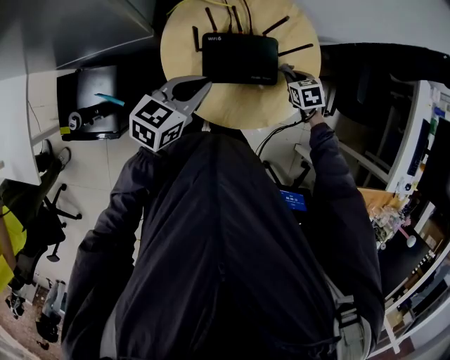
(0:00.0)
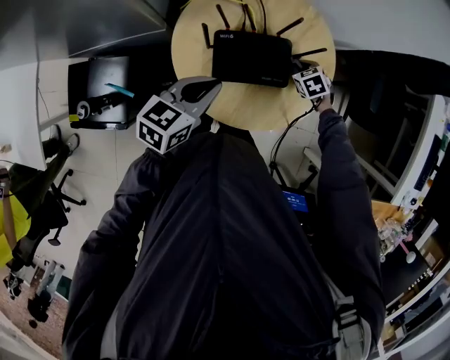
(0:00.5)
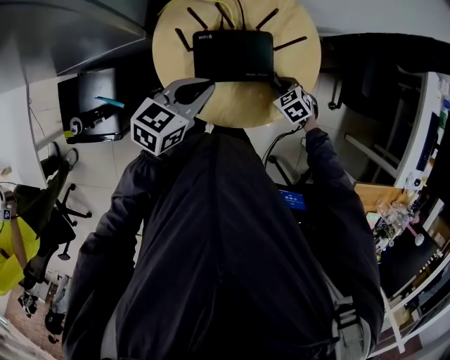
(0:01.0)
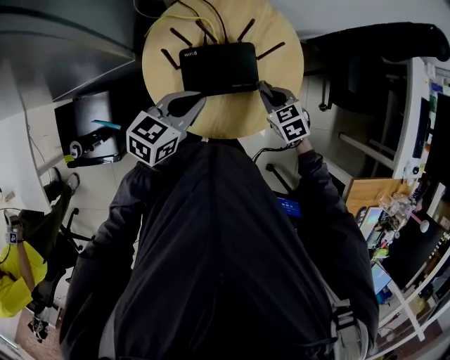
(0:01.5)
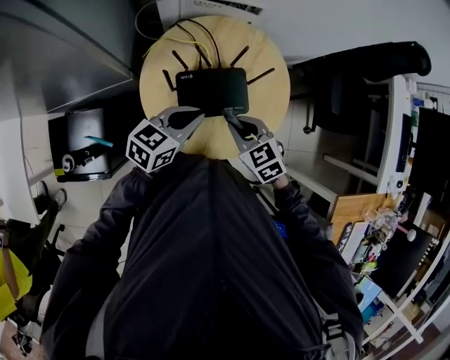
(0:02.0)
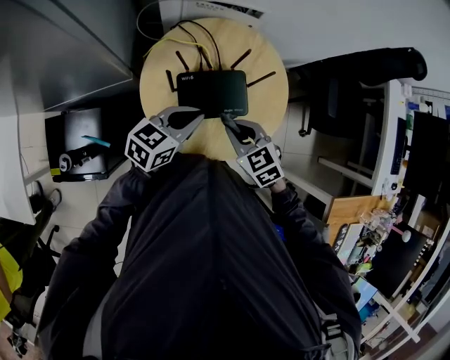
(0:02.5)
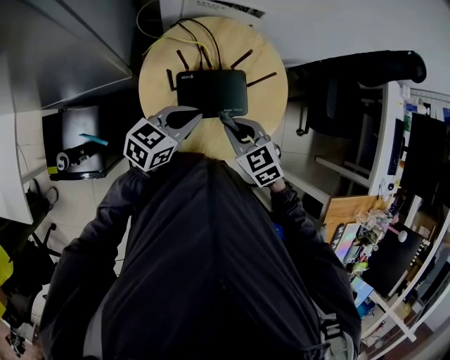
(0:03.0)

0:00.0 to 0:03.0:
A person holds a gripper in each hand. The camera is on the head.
0:00.0 to 0:01.5: The right gripper heads backward and upward, covering about 10 cm.
0:01.5 to 0:03.0: The right gripper goes some 15 cm to the left and upward.

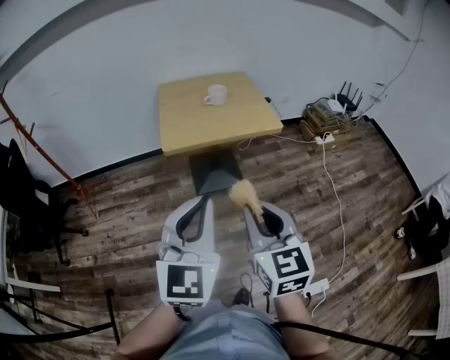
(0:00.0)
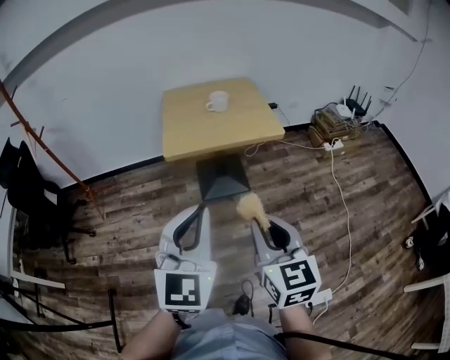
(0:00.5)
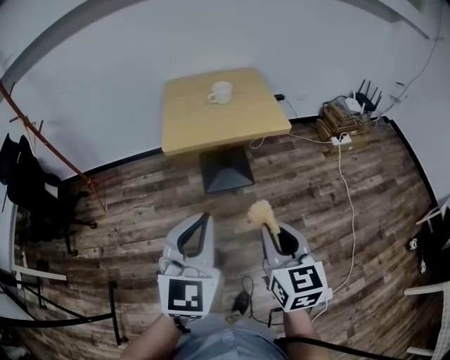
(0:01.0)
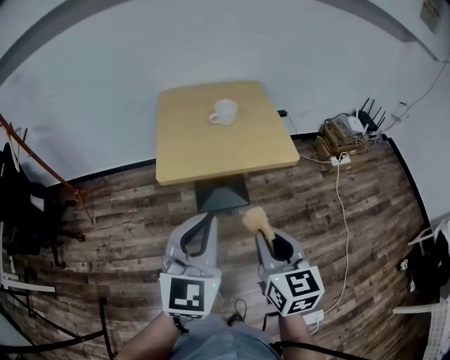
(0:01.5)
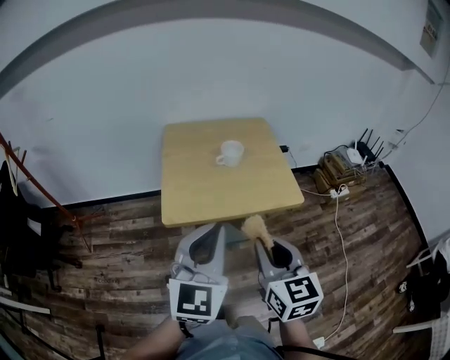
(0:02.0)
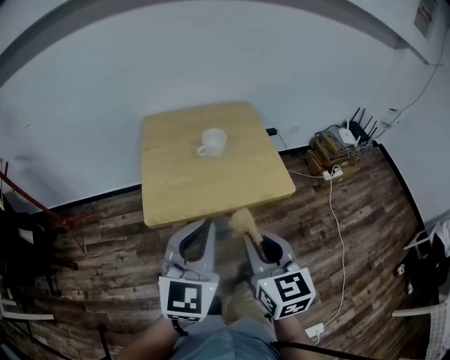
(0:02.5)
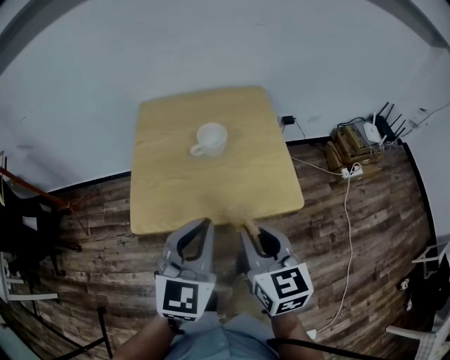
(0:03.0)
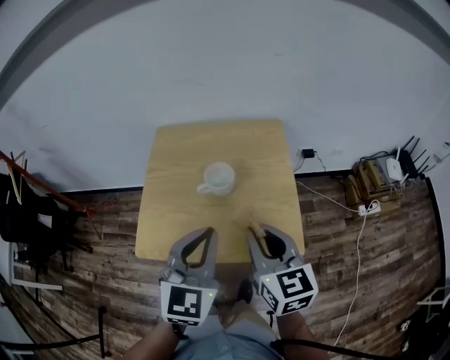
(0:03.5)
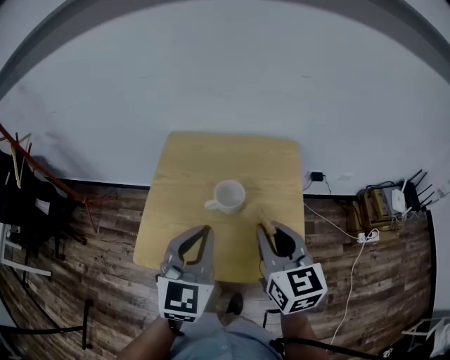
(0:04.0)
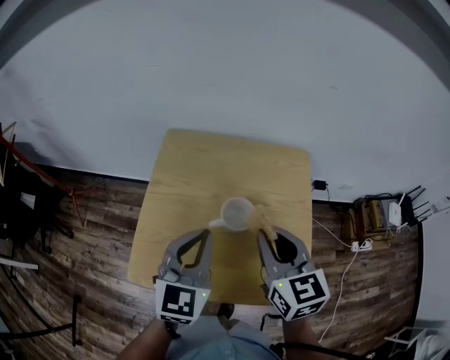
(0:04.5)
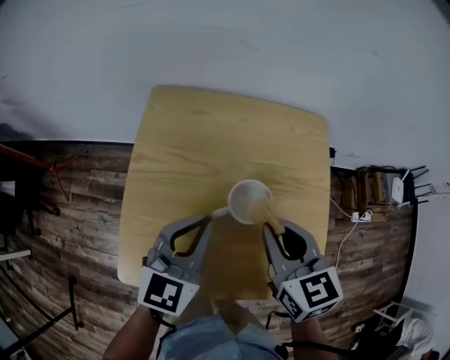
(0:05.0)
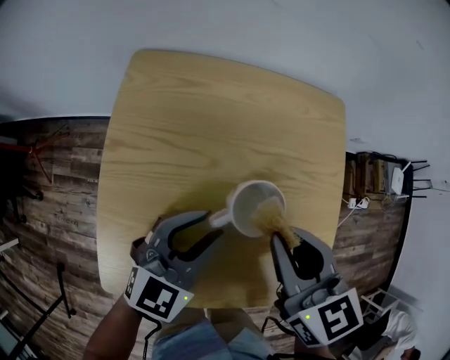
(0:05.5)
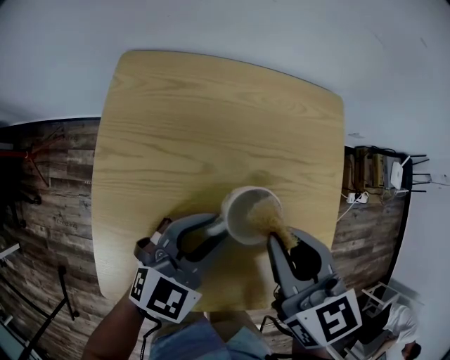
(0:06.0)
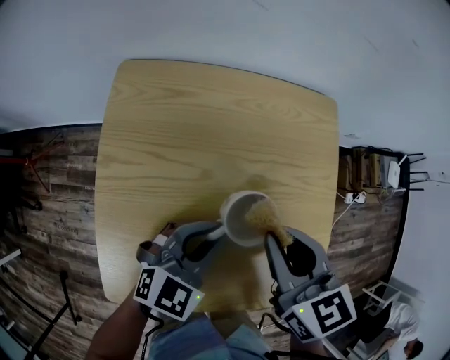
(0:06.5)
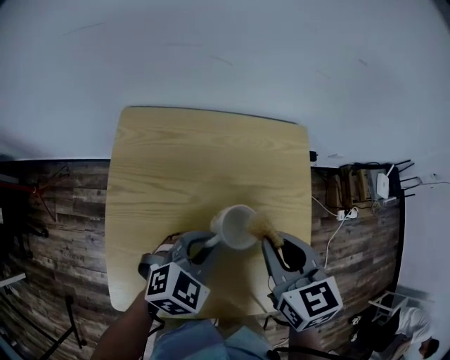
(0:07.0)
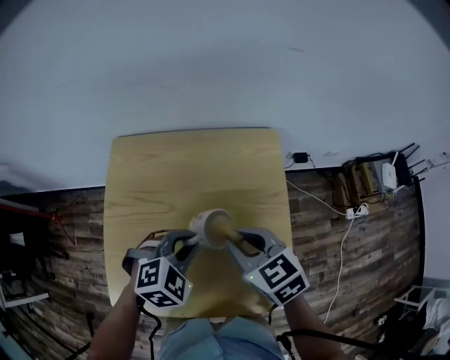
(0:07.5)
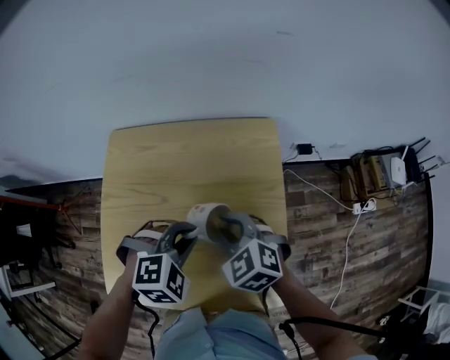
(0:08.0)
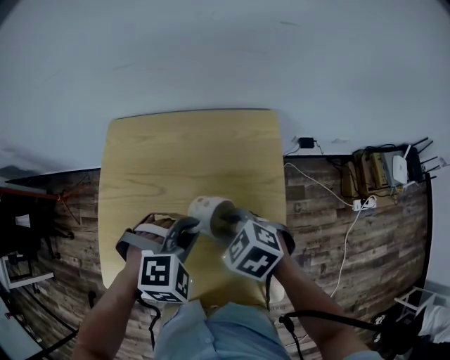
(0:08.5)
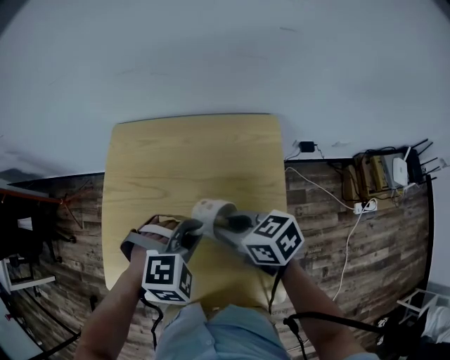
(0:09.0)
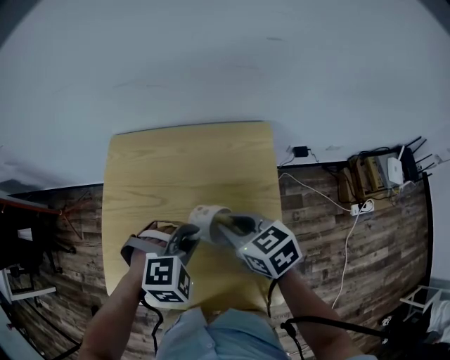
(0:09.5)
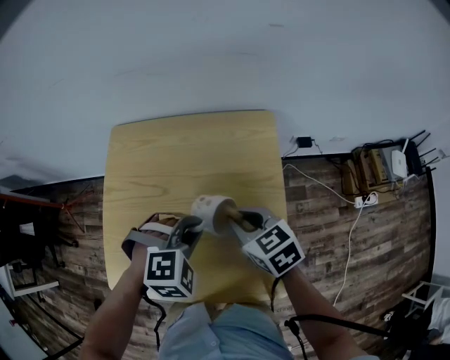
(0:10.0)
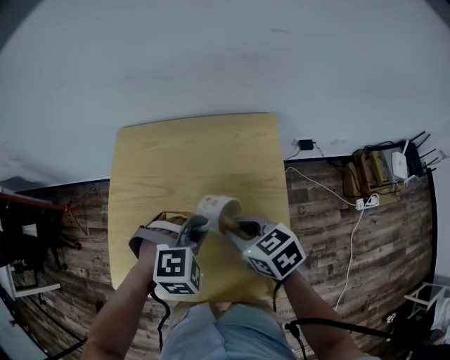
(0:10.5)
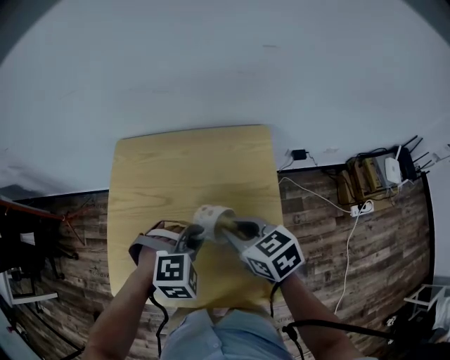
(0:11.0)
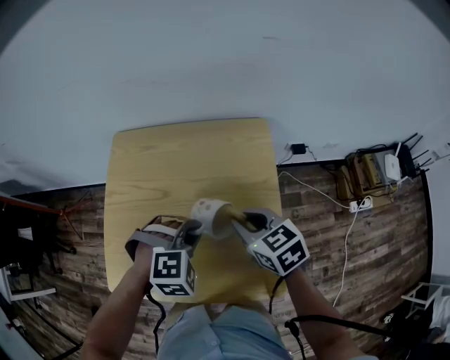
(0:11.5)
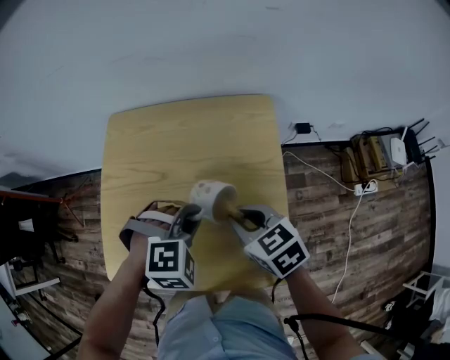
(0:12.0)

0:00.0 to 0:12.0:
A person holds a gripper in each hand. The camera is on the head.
0:00.0 to 0:02.0: Both grippers move forward, about 25 cm.
0:02.0 to 0:04.0: The two grippers go some 30 cm forward. The left gripper swivels some 20 degrees.
0:04.0 to 0:06.0: The right gripper goes roughly 20 cm forward, downward and to the left, and turns by approximately 20 degrees; the left gripper goes roughly 25 cm downward and forward, turns by some 30 degrees, and opens.
0:06.0 to 0:08.0: The left gripper shifts approximately 10 cm to the right, points its fingers some 30 degrees further downward, and closes its fingers. The right gripper moves approximately 5 cm, and changes its angle by about 40 degrees.
0:08.0 to 0:10.0: The right gripper swivels roughly 30 degrees.
0:10.0 to 0:12.0: The grippers move only a little.

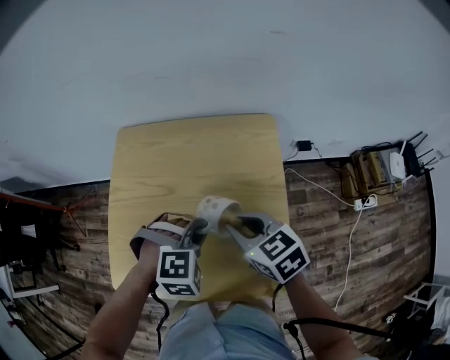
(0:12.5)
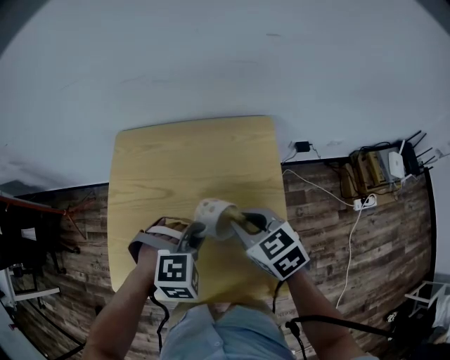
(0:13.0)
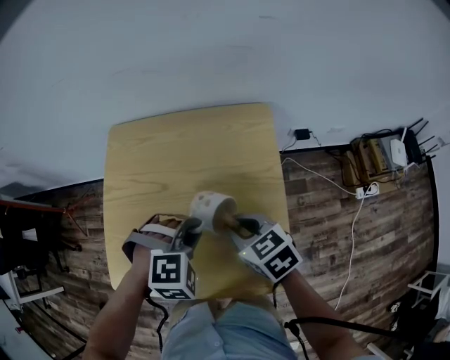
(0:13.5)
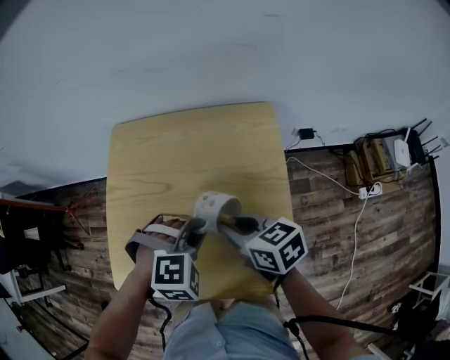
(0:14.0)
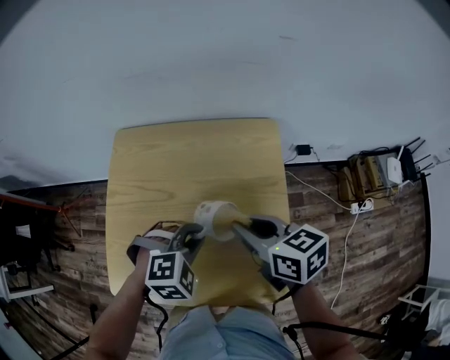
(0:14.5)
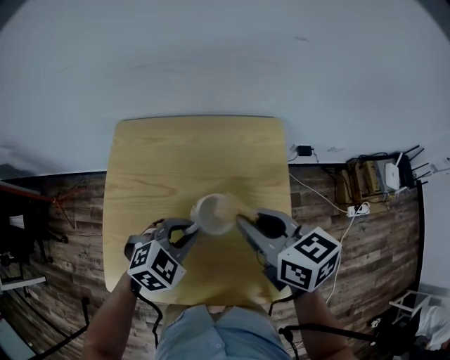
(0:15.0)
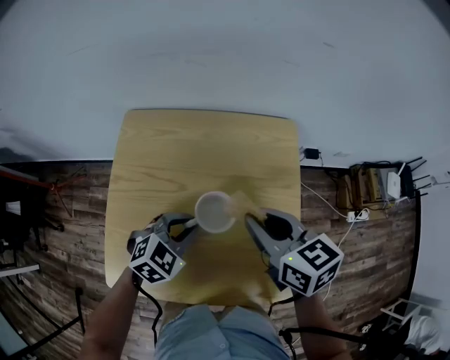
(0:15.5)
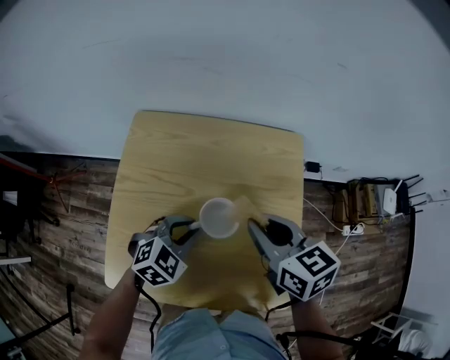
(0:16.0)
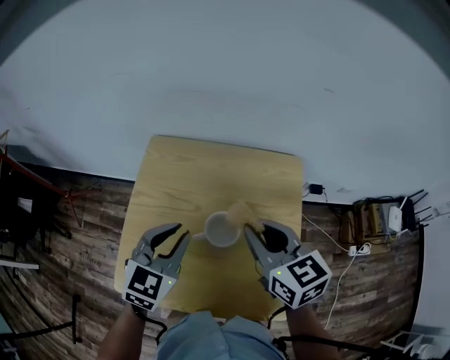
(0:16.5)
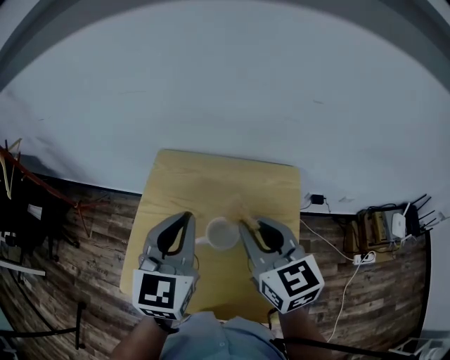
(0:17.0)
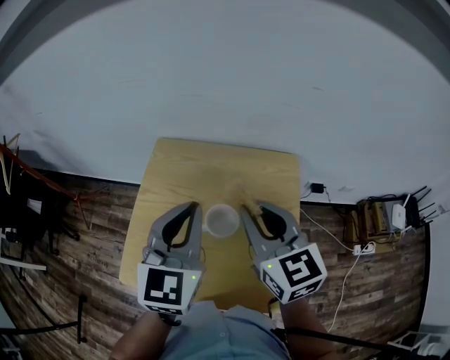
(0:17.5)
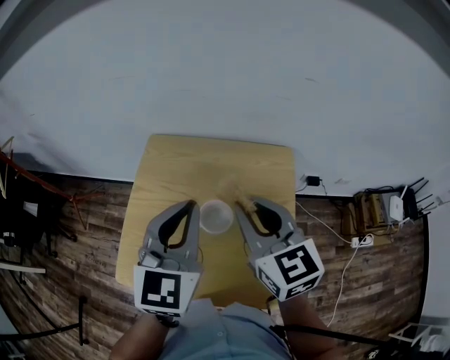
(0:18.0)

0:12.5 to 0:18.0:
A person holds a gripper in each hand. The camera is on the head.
0:12.5 to 0:14.5: The right gripper swivels some 20 degrees.
0:14.5 to 0:16.0: The left gripper travels to the left by some 5 cm, and swivels roughly 30 degrees.
0:16.0 to 0:18.0: The right gripper shifts approximately 10 cm upward, and changes its angle by roughly 20 degrees. Meanwhile the left gripper is displaced upward by some 25 cm, and angles its fingers upward, by some 30 degrees.

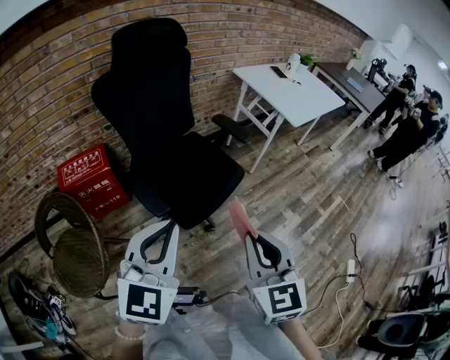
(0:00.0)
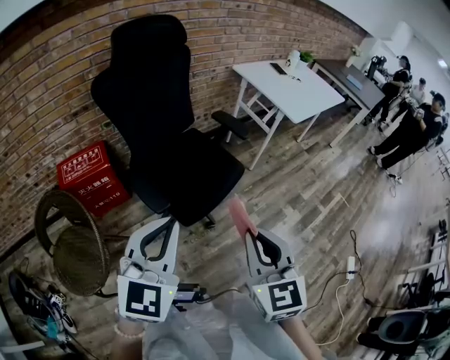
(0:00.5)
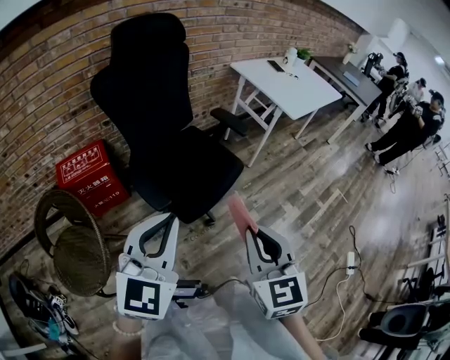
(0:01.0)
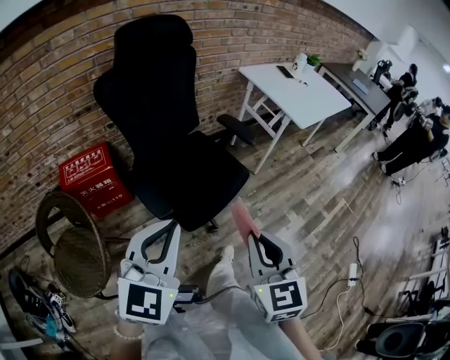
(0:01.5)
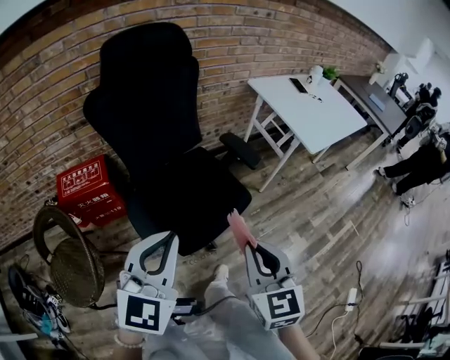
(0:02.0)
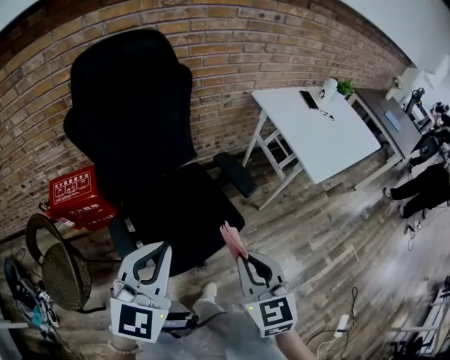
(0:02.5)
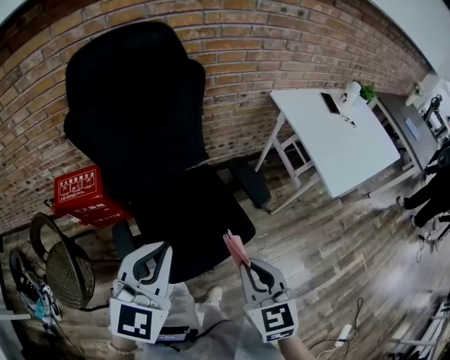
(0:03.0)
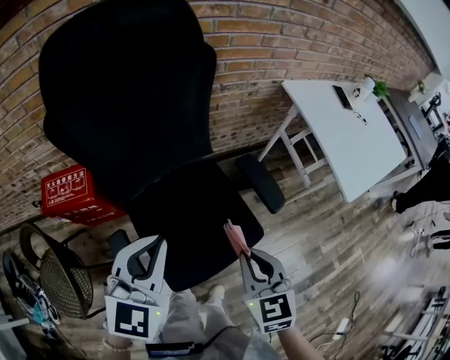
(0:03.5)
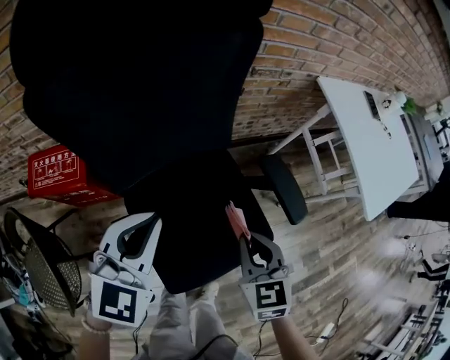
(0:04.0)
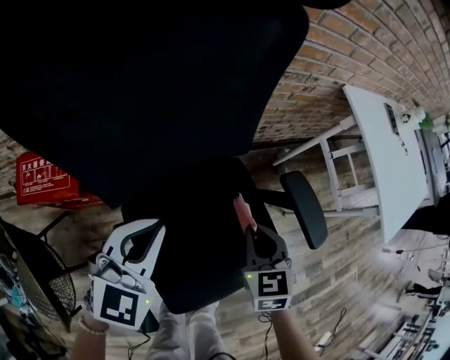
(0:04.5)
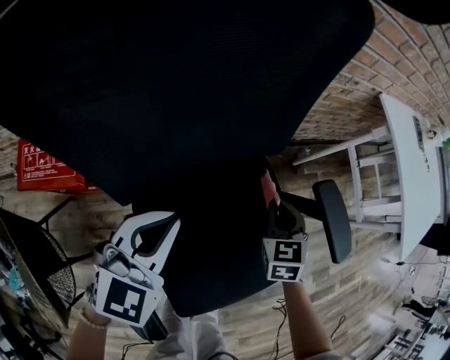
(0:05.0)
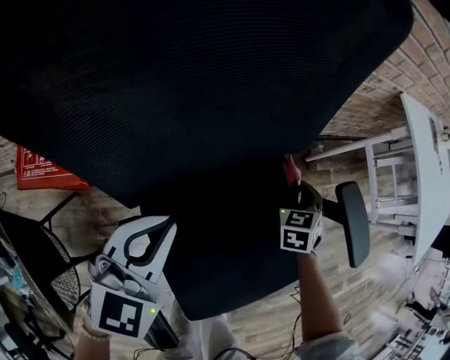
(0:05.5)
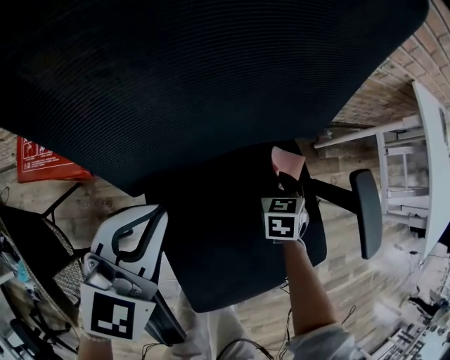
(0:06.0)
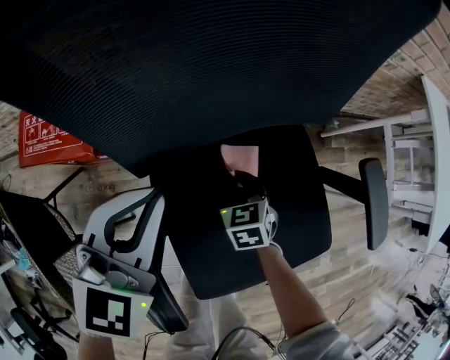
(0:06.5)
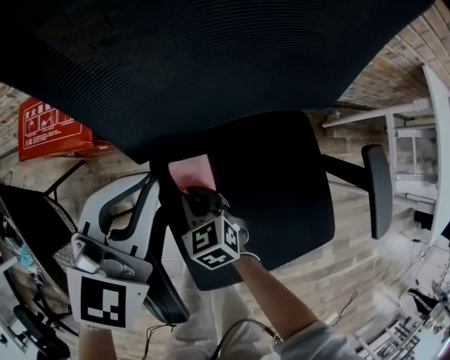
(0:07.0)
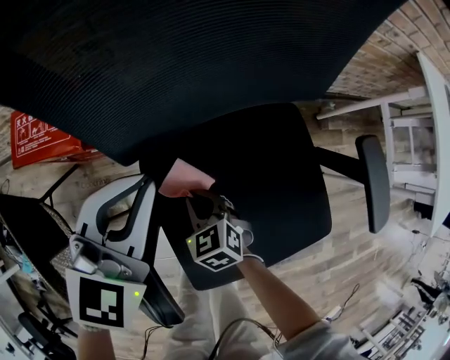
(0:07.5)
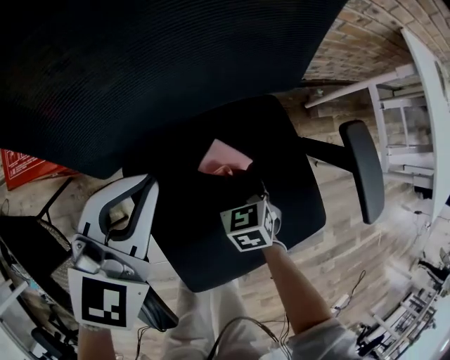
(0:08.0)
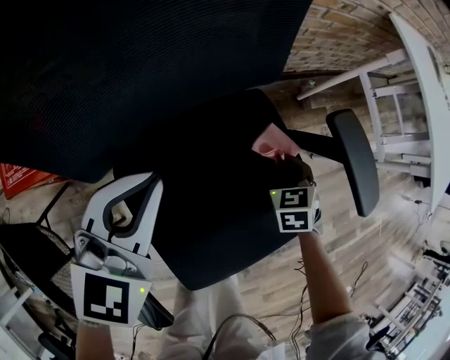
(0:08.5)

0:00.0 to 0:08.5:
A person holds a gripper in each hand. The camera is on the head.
0:00.0 to 0:02.0: Both grippers travel together forward, about 15 cm.
0:02.0 to 0:04.0: Both grippers move forward and downward, approximately 40 cm.
0:04.0 to 0:06.5: The left gripper travels downward and to the left by roughly 25 cm, while the right gripper travels downward and to the left by about 40 cm.
0:06.5 to 0:08.5: The left gripper changes place by approximately 10 cm. The right gripper changes place by approximately 25 cm.
